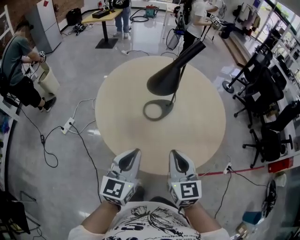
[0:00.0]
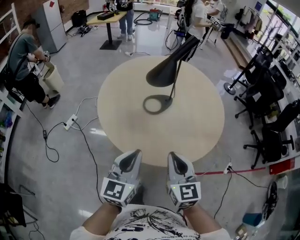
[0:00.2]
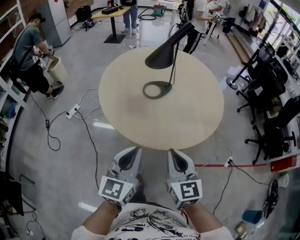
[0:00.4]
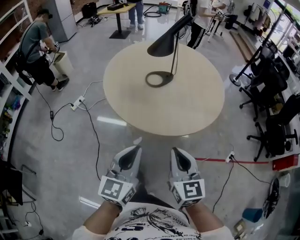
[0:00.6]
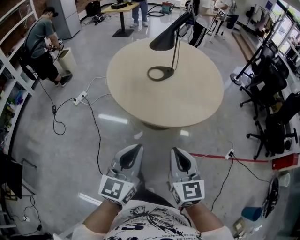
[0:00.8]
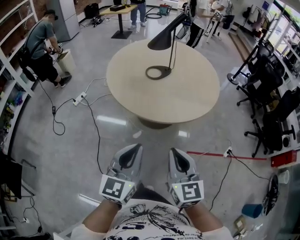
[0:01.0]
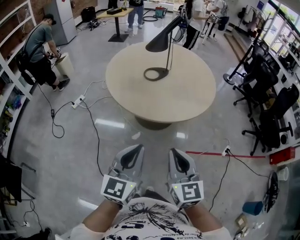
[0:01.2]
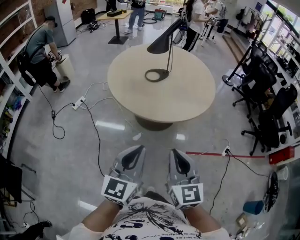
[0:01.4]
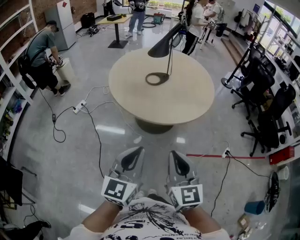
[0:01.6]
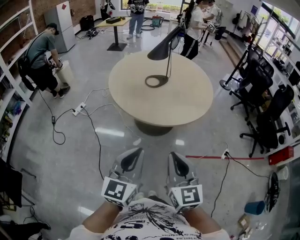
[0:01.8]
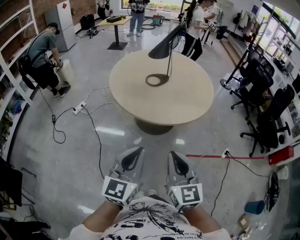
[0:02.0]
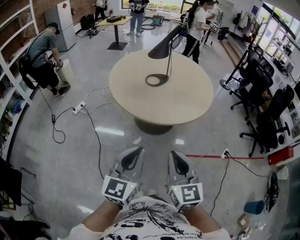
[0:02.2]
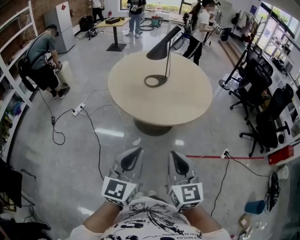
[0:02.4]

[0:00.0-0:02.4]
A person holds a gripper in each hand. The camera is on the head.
0:00.0 to 0:01.2: The two grippers go about 30 cm backward.
0:01.2 to 0:02.4: The grippers move only a little.

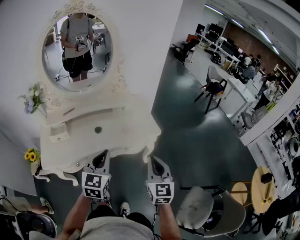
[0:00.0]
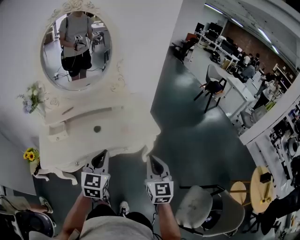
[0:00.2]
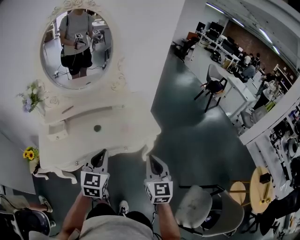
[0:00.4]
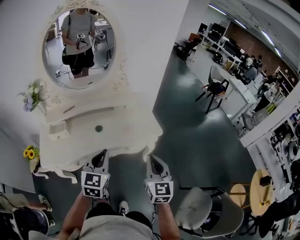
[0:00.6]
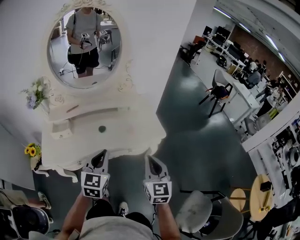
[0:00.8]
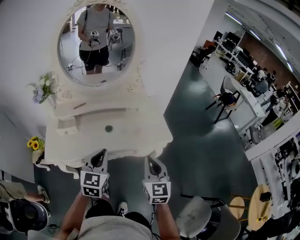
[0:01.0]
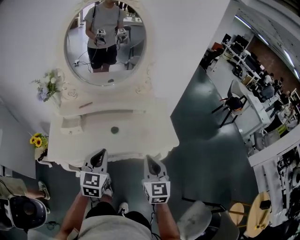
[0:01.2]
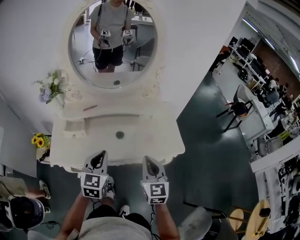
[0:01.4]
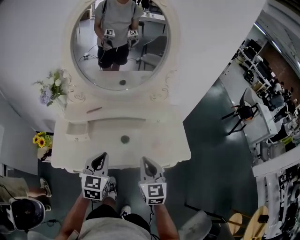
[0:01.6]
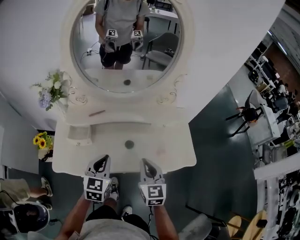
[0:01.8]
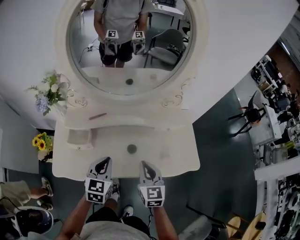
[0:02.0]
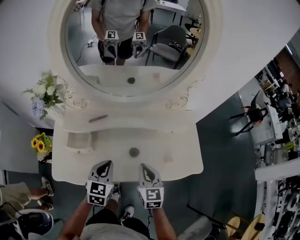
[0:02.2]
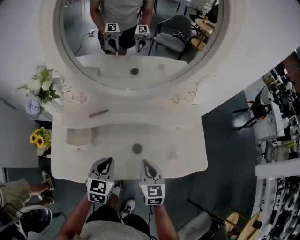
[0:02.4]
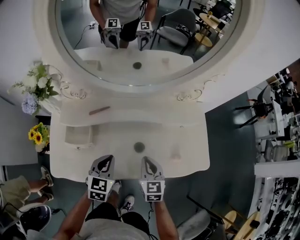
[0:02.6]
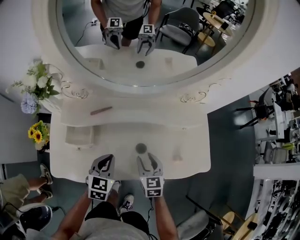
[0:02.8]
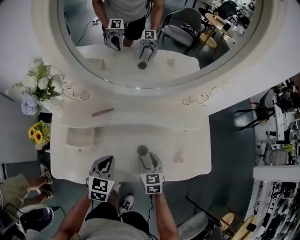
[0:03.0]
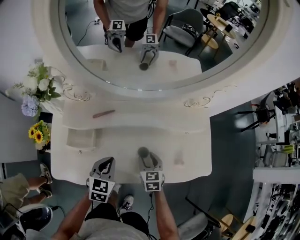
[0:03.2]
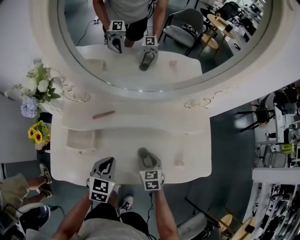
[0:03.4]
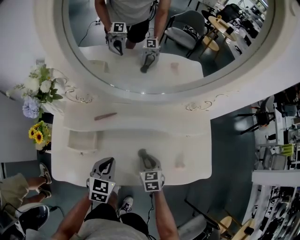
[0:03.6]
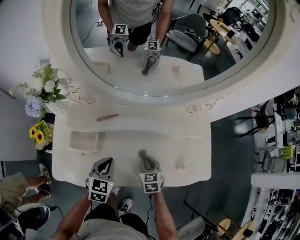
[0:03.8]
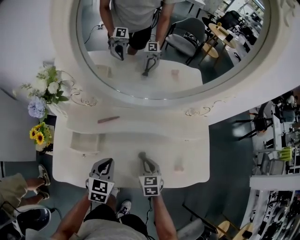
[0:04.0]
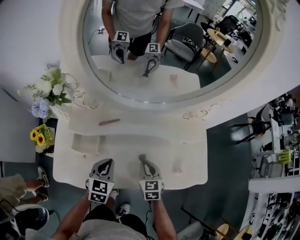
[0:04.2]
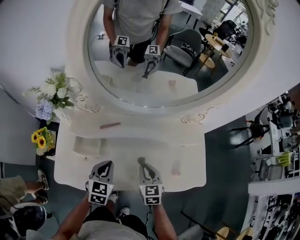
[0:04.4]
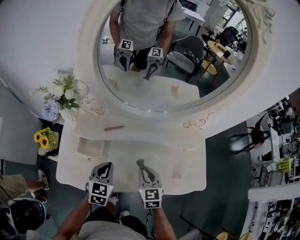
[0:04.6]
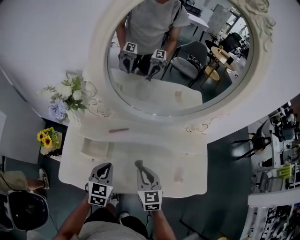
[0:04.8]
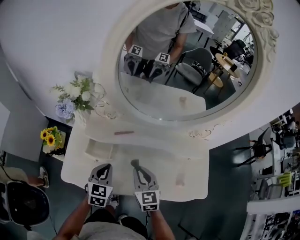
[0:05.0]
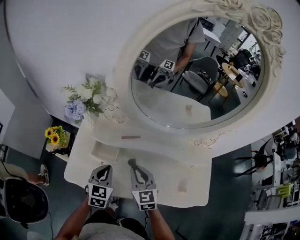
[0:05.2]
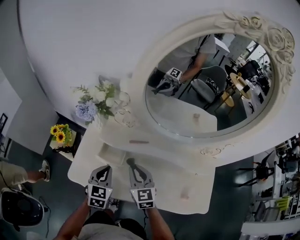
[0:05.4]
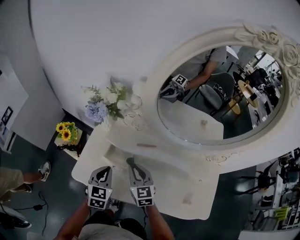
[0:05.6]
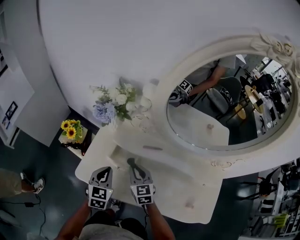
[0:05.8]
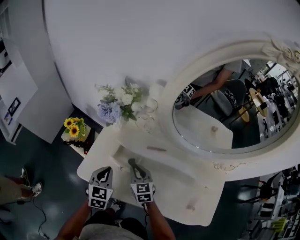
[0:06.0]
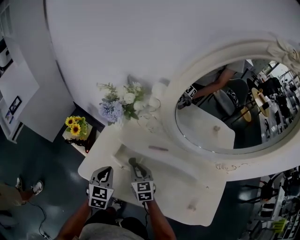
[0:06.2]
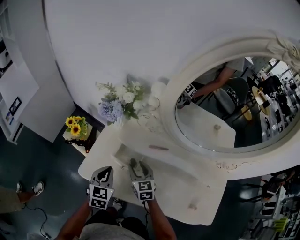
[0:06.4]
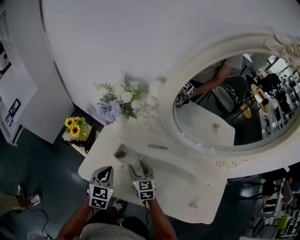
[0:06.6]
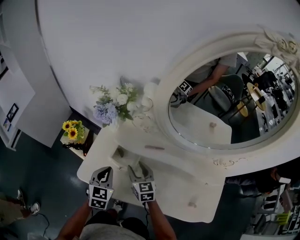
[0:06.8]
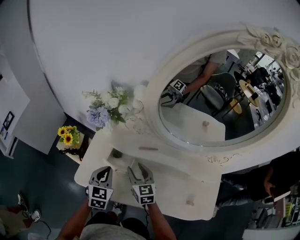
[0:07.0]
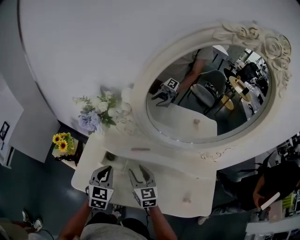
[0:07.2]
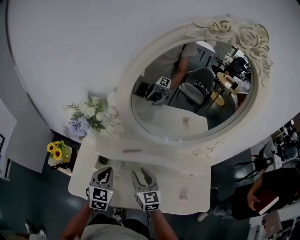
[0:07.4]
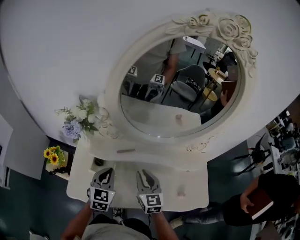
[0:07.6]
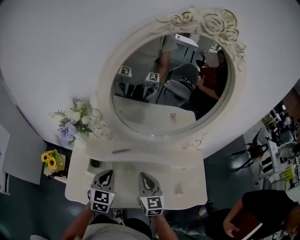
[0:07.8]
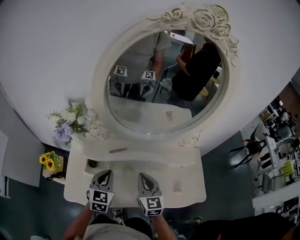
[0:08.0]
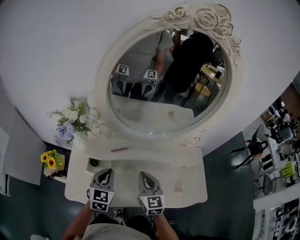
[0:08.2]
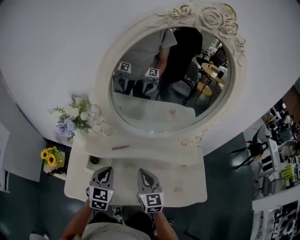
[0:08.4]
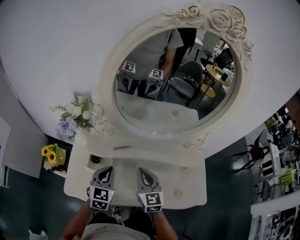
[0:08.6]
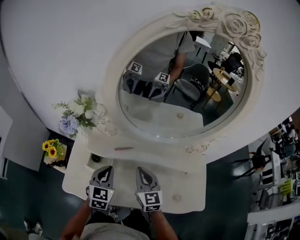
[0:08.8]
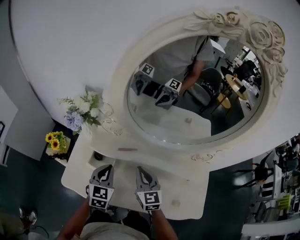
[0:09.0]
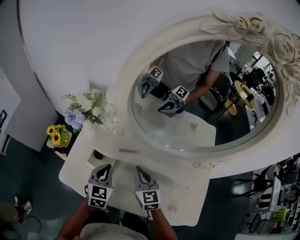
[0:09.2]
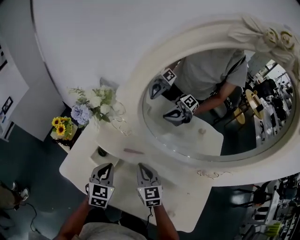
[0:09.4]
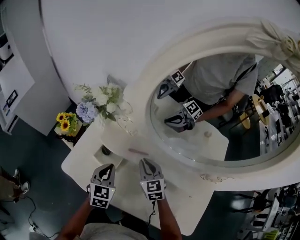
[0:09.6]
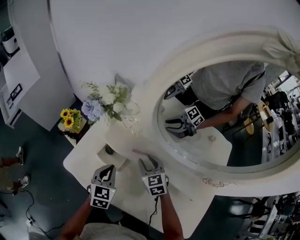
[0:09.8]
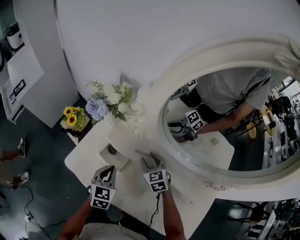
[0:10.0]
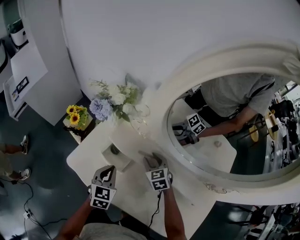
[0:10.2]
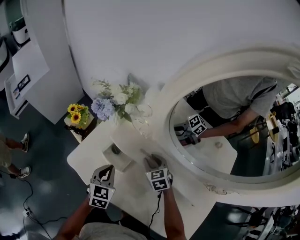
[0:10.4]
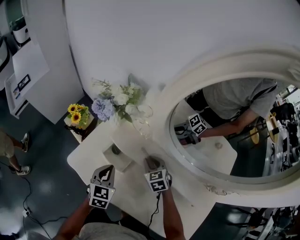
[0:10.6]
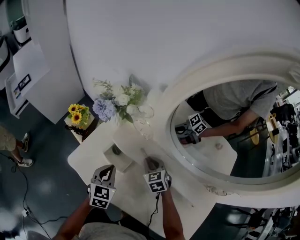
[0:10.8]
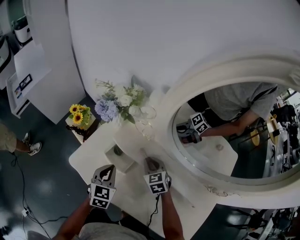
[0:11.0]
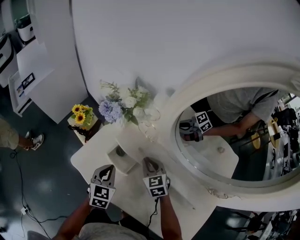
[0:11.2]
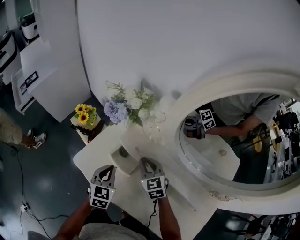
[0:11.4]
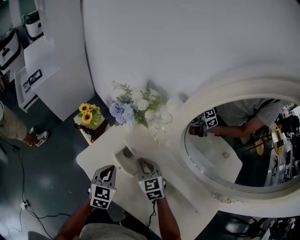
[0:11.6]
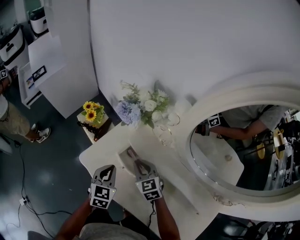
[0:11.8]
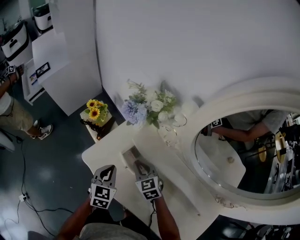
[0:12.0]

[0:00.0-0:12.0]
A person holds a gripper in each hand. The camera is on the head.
0:00.0 to 0:01.6: Both grippers move to the left and forward, roughly 25 cm. The right gripper turns by approximately 20 degrees.
0:01.6 to 0:03.0: The left gripper goes approximately 20 cm downward, forward and to the left, while the right gripper goes some 25 cm downward and forward, rotates approximately 30 degrees, and opens.
0:03.0 to 0:04.4: The right gripper moves upward, roughly 5 cm, and closes.
0:04.4 to 0:06.0: The right gripper goes upward and returns, about 10 cm each way, and turns by approximately 30 degrees; the left gripper moves about 20 cm, and rotates some 30 degrees.
0:06.0 to 0:07.6: The two grippers go roughly 15 cm to the right and upward. The left gripper rotates some 20 degrees, while the right gripper turns by about 30 degrees, and opens, then closes once more.
0:07.6 to 0:09.0: There are only small adjustments of the grippers.
0:09.0 to 0:10.4: The right gripper is displaced downward and forward by roughly 15 cm, rotates roughly 40 degrees, and opens up; the left gripper is displaced to the left and downward by approximately 10 cm, and turns by approximately 20 degrees.
0:10.4 to 0:12.0: The right gripper shifts roughly 15 cm to the left, and closes its fingers; the left gripper travels to the left by about 10 cm.

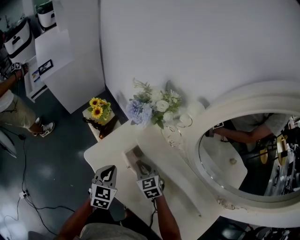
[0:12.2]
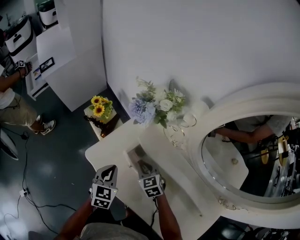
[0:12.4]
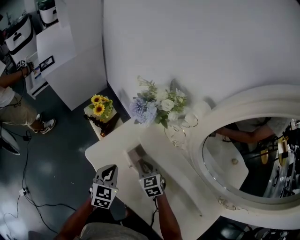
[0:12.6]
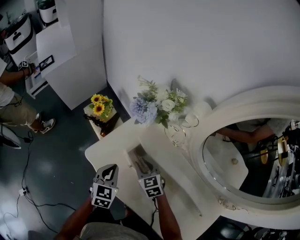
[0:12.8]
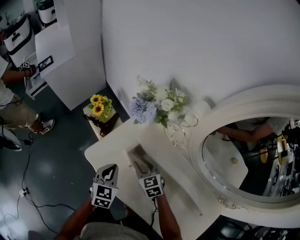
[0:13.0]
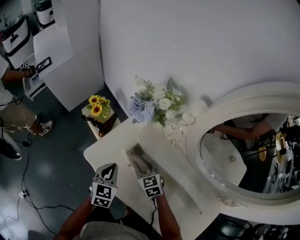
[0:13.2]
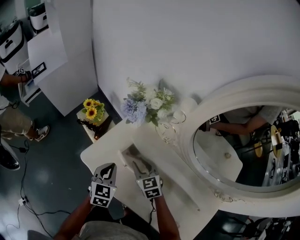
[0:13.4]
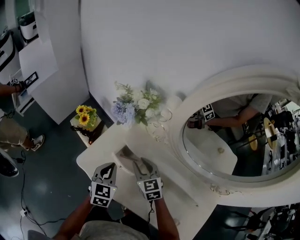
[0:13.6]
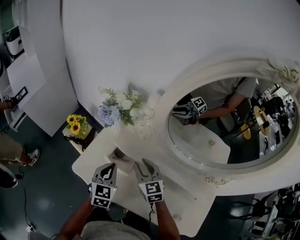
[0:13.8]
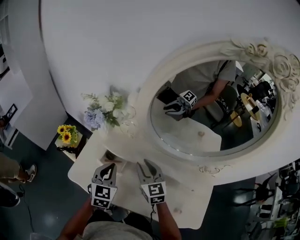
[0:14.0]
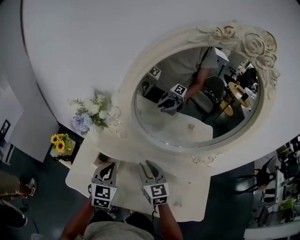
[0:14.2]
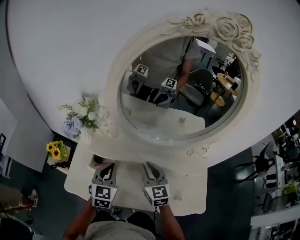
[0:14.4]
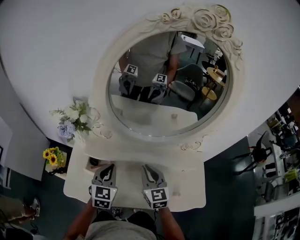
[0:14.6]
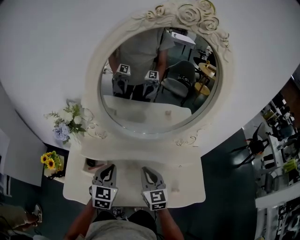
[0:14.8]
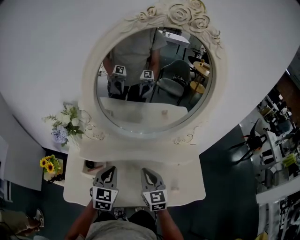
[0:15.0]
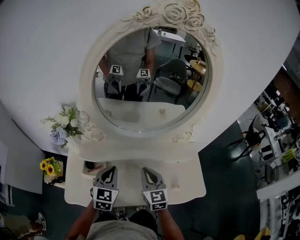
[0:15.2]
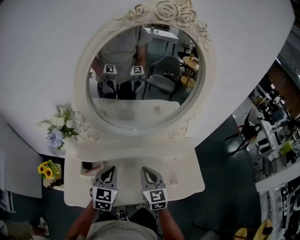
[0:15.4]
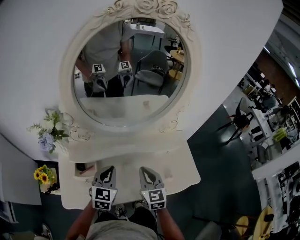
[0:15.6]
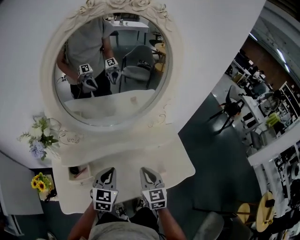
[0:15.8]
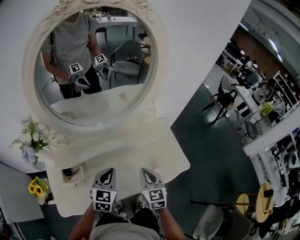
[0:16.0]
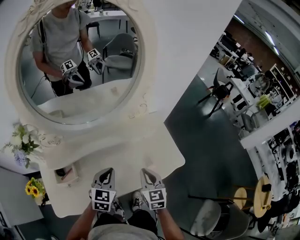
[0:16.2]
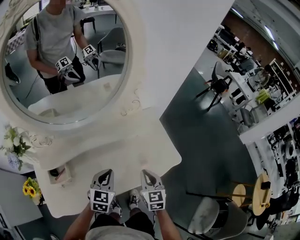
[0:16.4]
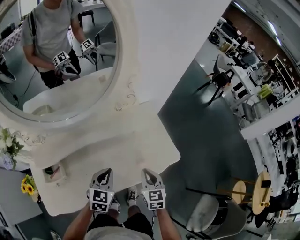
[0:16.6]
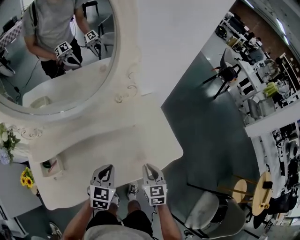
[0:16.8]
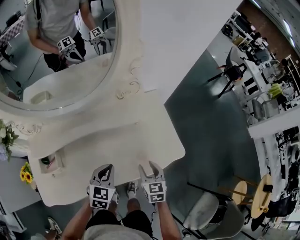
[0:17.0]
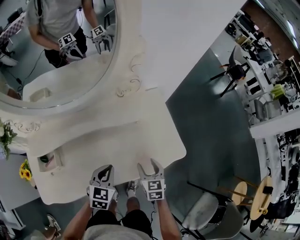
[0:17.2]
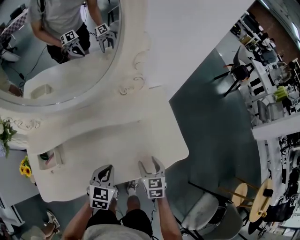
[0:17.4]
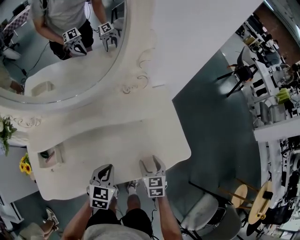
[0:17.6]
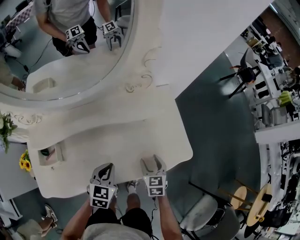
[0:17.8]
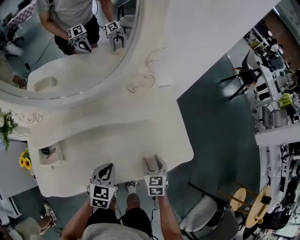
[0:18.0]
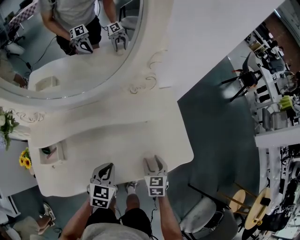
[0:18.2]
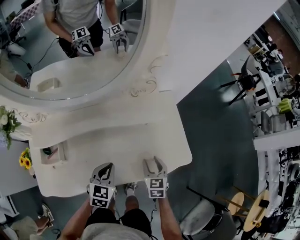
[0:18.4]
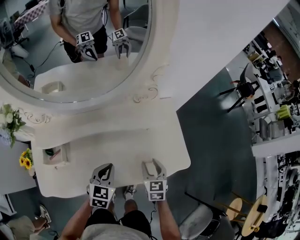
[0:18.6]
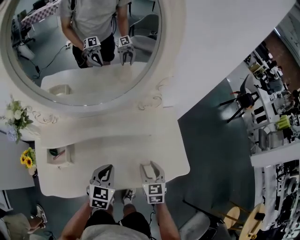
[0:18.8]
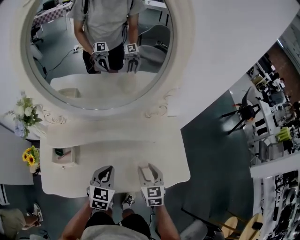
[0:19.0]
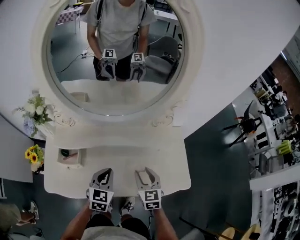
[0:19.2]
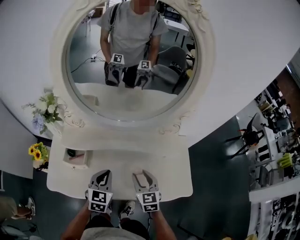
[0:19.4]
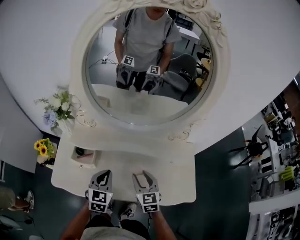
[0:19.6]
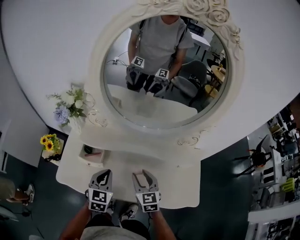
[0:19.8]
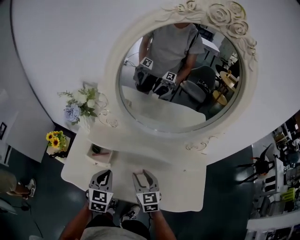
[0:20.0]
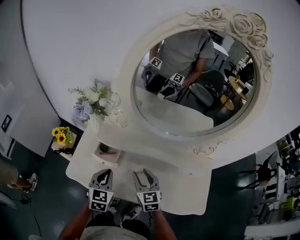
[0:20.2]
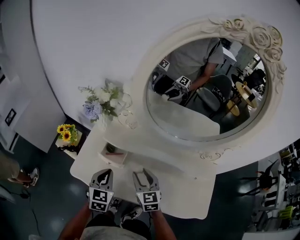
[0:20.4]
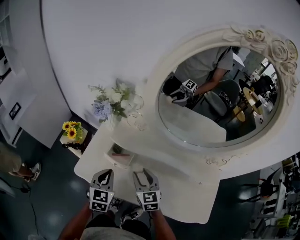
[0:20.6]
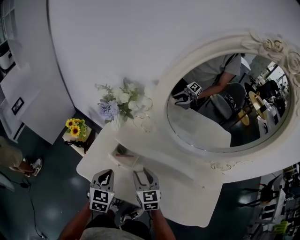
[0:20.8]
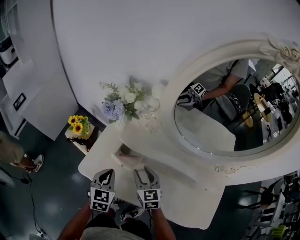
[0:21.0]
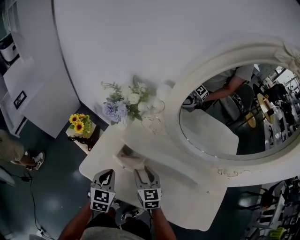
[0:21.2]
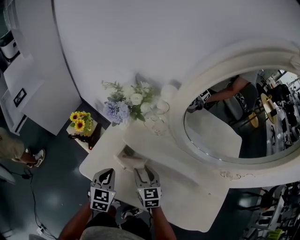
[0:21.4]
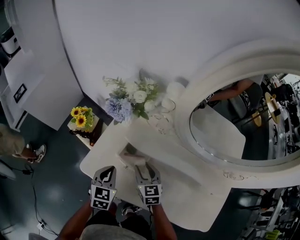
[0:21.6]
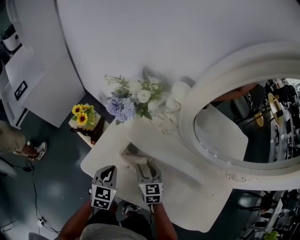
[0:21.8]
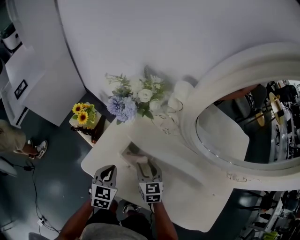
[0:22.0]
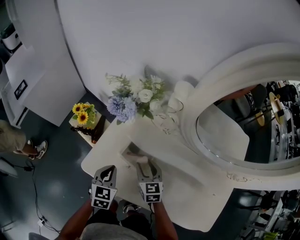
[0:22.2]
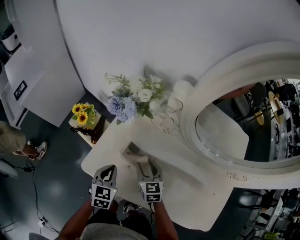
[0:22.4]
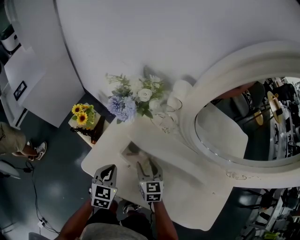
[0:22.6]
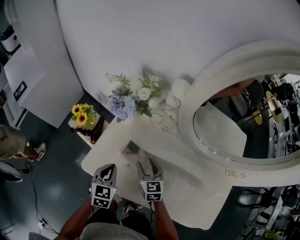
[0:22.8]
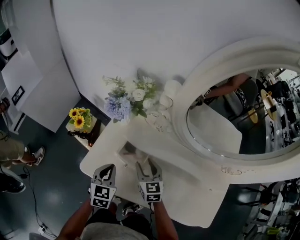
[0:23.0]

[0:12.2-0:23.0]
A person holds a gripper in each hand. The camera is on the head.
0:12.2 to 0:13.8: The right gripper shifts some 15 cm upward and to the right, turns by about 30 degrees, and opens its fingers. Meanwhile the left gripper is displaced to the right and upward by approximately 10 cm.
0:13.8 to 0:15.2: The left gripper moves approximately 15 cm, and swivels roughly 30 degrees. Meanwhile the right gripper shifts by some 20 cm, changes its angle by about 40 degrees, and closes its fingers.
0:15.2 to 0:16.8: The right gripper moves some 30 cm, and changes its angle by approximately 30 degrees, while the left gripper changes place by some 25 cm, and changes its angle by some 30 degrees.
0:16.8 to 0:18.4: The right gripper is displaced downward by roughly 5 cm, and opens its fingers.
0:18.4 to 0:20.0: The right gripper changes place by some 30 cm, and rotates about 40 degrees. Meanwhile the left gripper changes place by some 25 cm, and turns by roughly 30 degrees.
0:20.0 to 0:21.4: The left gripper heads to the left and downward, covering roughly 15 cm; the right gripper travels to the left, forward and downward by roughly 20 cm.
0:21.4 to 0:23.0: The grippers make only small movements.
